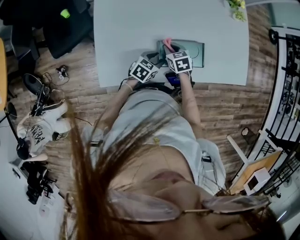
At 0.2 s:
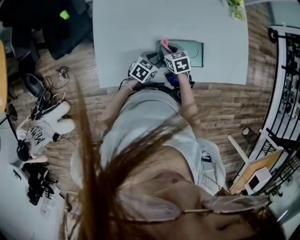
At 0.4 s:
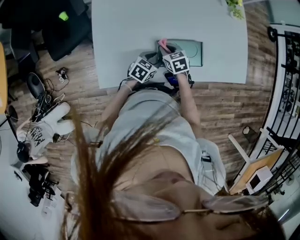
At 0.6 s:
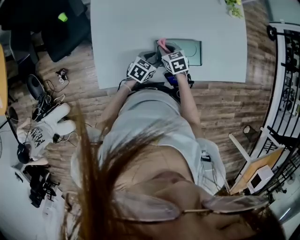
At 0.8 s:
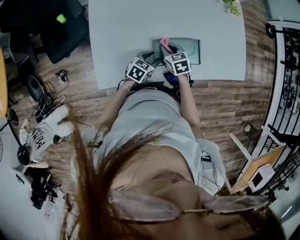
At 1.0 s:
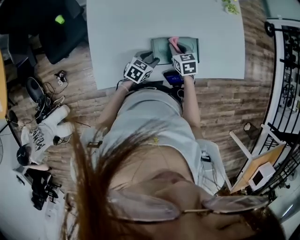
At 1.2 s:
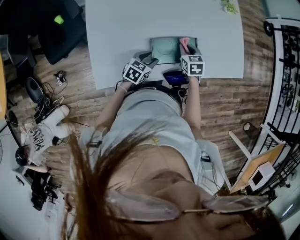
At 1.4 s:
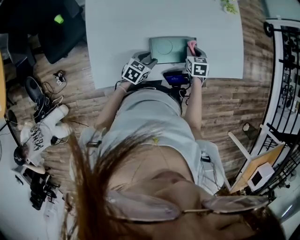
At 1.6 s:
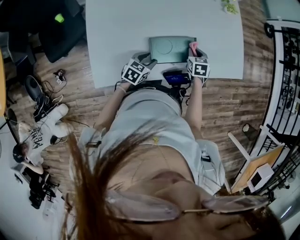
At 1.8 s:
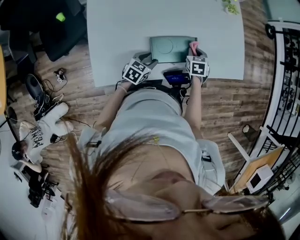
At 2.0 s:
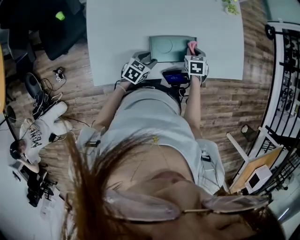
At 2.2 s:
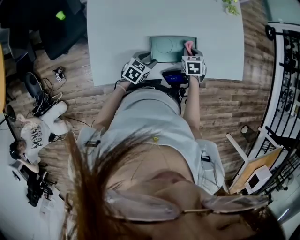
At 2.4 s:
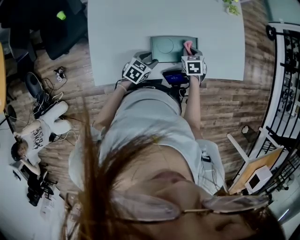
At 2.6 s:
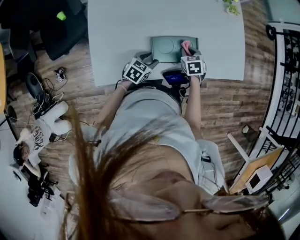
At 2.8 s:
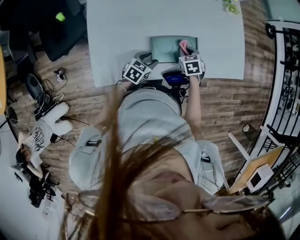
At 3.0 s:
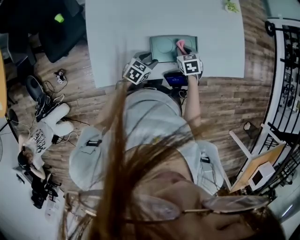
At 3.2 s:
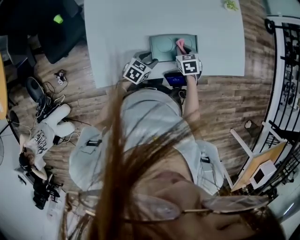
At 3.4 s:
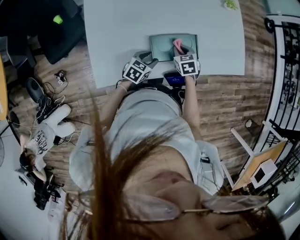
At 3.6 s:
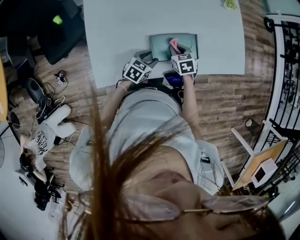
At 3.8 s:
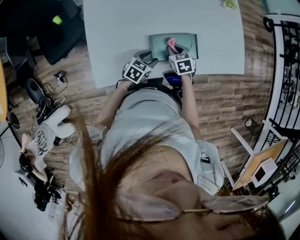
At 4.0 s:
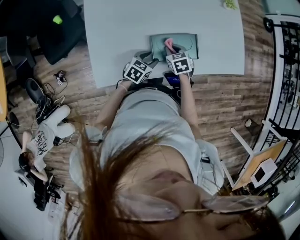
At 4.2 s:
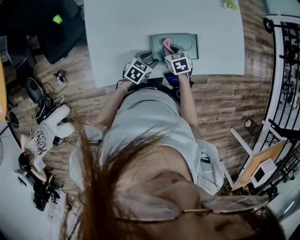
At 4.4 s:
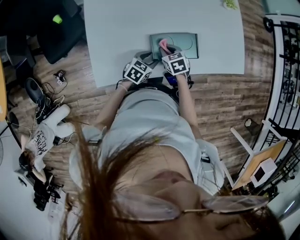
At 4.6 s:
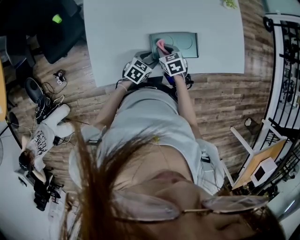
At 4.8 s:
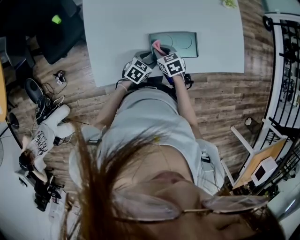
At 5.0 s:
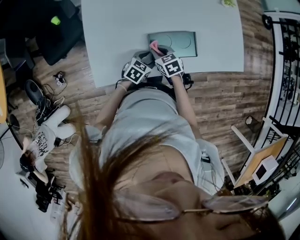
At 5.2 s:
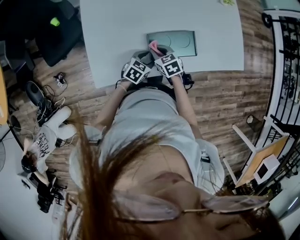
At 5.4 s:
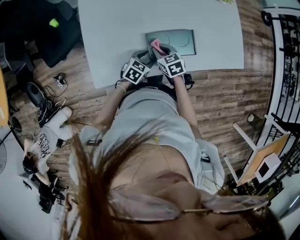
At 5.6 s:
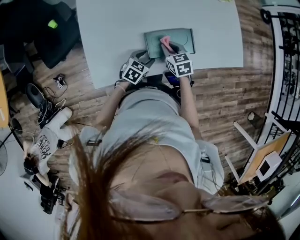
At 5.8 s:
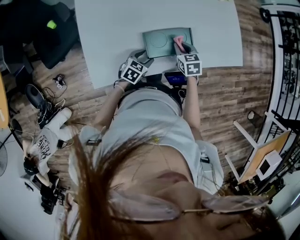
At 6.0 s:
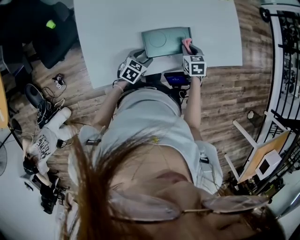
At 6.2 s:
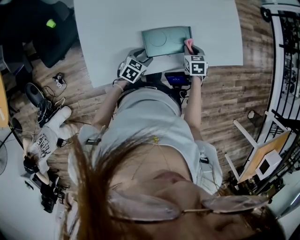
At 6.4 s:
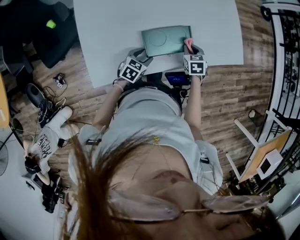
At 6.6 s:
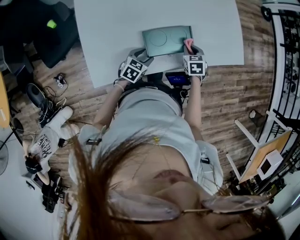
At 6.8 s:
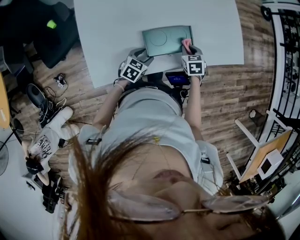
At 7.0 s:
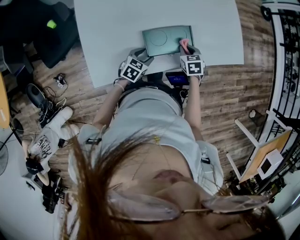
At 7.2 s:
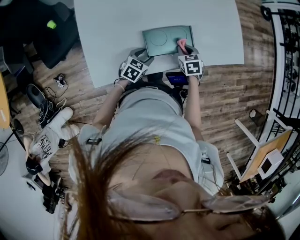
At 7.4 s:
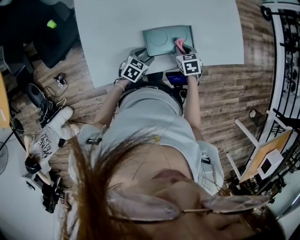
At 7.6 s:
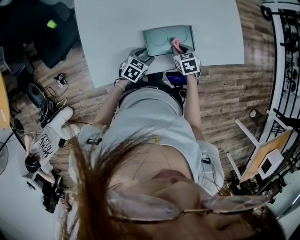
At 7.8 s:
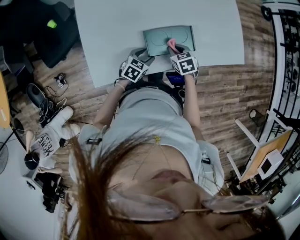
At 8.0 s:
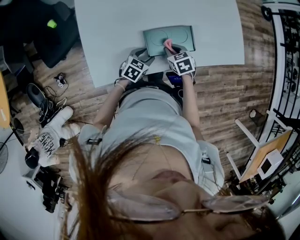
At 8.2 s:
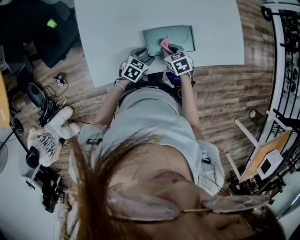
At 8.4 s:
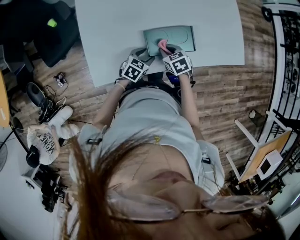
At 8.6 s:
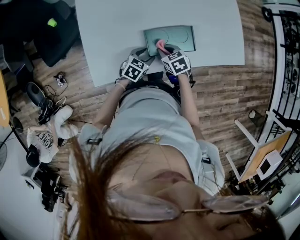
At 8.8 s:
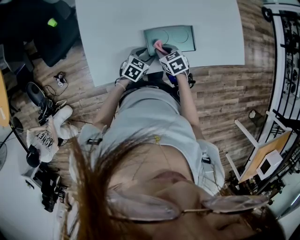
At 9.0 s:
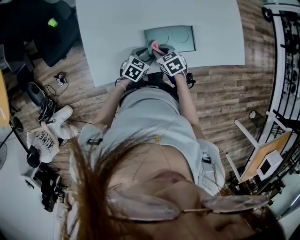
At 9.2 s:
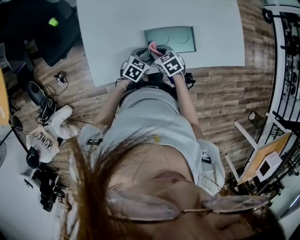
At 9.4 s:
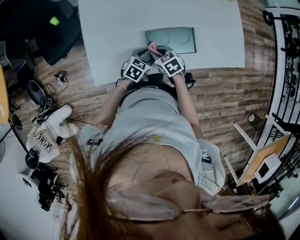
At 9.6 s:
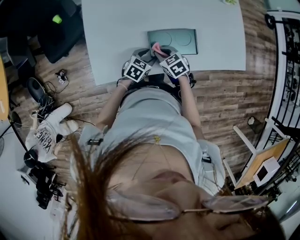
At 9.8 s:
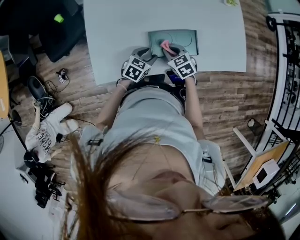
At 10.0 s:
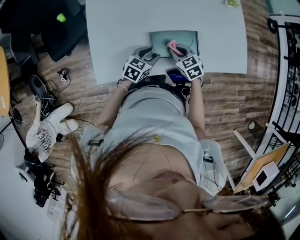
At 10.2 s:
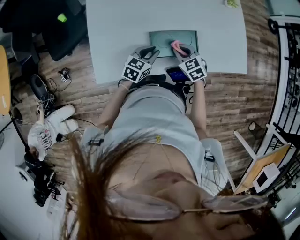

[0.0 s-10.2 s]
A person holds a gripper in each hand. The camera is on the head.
0.0 to 1.4 s: The right gripper moves to the right, roughly 15 cm, and changes its angle by roughly 20 degrees.
1.4 to 3.0 s: The right gripper moves approximately 5 cm.
3.0 to 4.4 s: The right gripper travels to the left by about 10 cm.
4.4 to 5.8 s: The right gripper shifts some 10 cm to the right.
7.2 to 8.8 s: The right gripper travels to the left by some 10 cm.
8.8 to 10.2 s: The left gripper moves upward, roughly 5 cm, and closes its fingers. Meanwhile the right gripper goes some 5 cm to the right.

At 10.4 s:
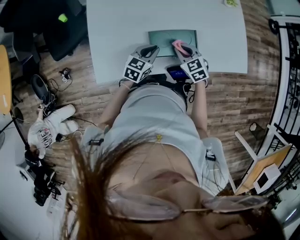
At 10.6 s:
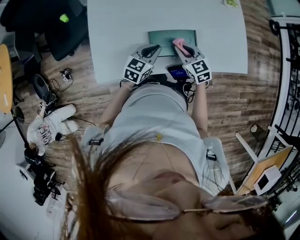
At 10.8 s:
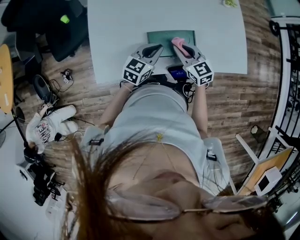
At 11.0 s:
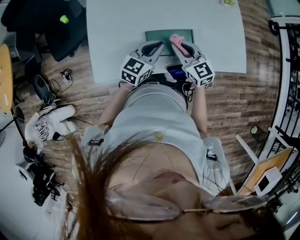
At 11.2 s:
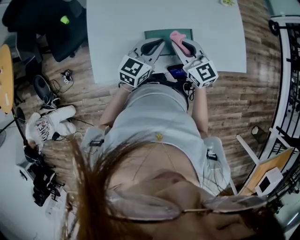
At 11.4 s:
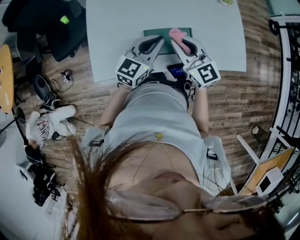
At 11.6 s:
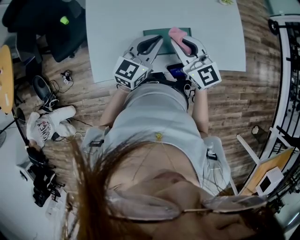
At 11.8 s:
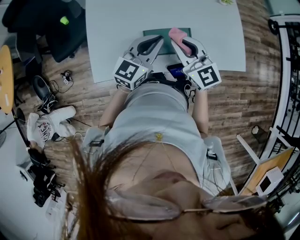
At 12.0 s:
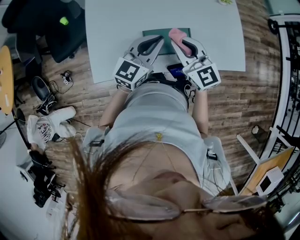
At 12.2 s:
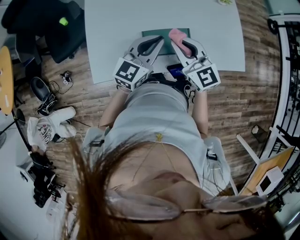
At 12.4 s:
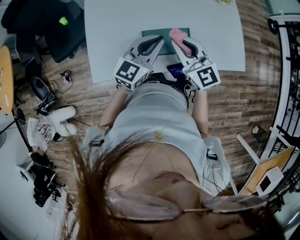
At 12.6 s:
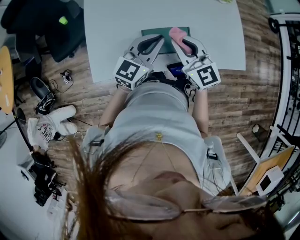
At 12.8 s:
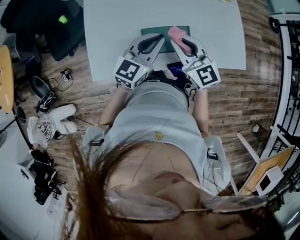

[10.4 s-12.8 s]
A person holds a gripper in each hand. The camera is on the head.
10.4 to 11.6 s: The two grippers go roughly 20 cm upward. The left gripper swivels approximately 20 degrees. Meanwhile the right gripper tips its fingers upward by some 40 degrees.
11.6 to 12.8 s: There are only small adjustments of the grippers.

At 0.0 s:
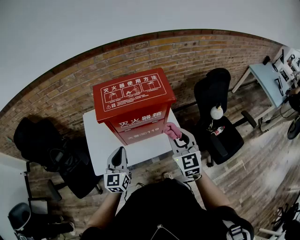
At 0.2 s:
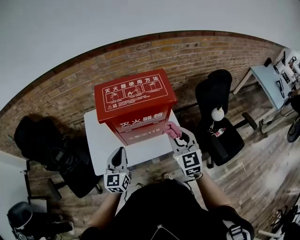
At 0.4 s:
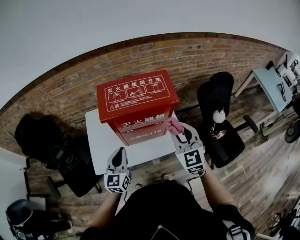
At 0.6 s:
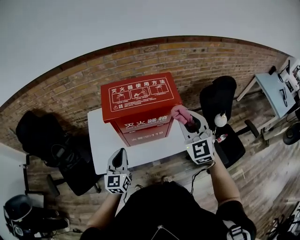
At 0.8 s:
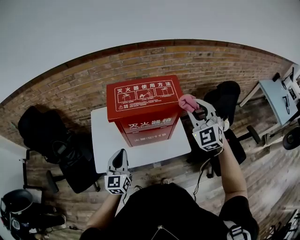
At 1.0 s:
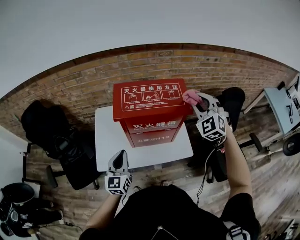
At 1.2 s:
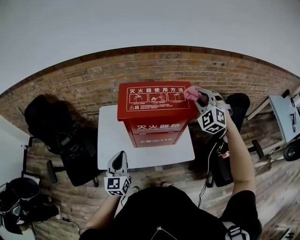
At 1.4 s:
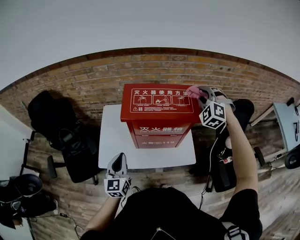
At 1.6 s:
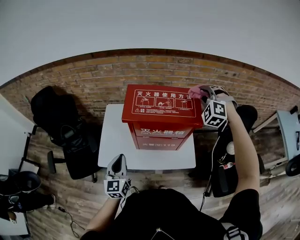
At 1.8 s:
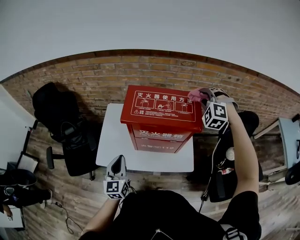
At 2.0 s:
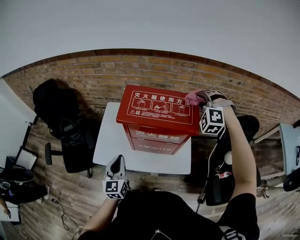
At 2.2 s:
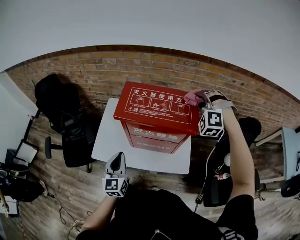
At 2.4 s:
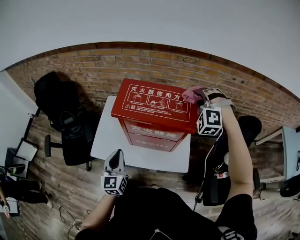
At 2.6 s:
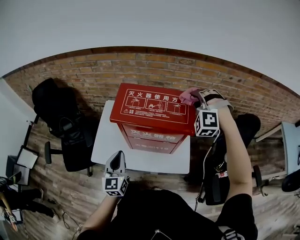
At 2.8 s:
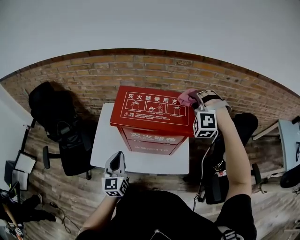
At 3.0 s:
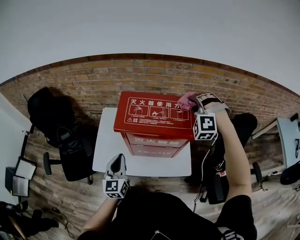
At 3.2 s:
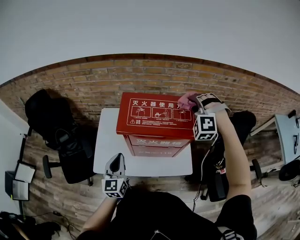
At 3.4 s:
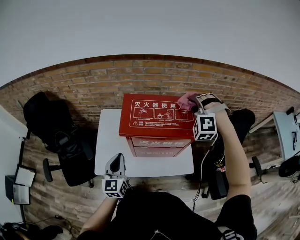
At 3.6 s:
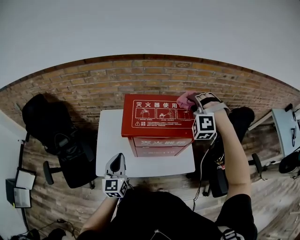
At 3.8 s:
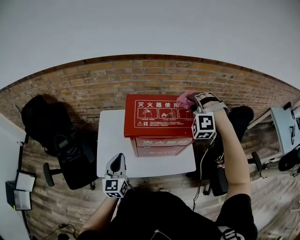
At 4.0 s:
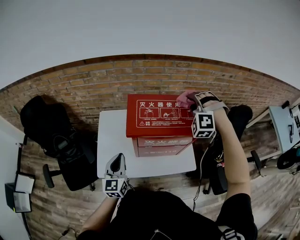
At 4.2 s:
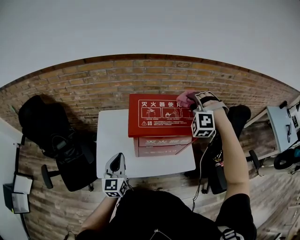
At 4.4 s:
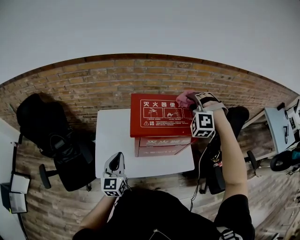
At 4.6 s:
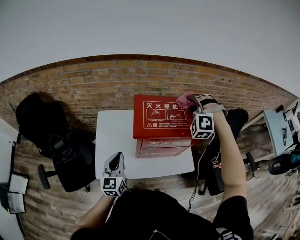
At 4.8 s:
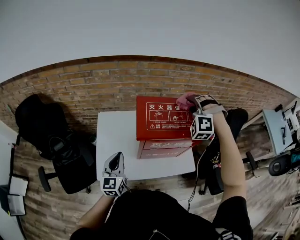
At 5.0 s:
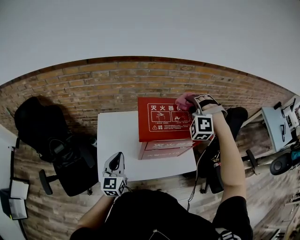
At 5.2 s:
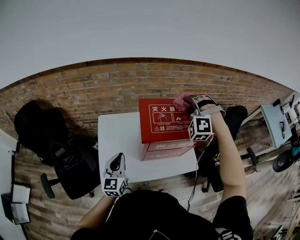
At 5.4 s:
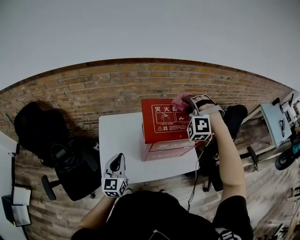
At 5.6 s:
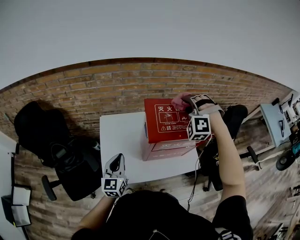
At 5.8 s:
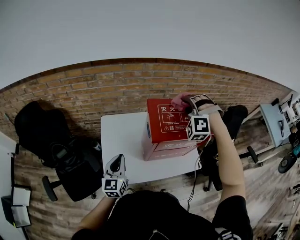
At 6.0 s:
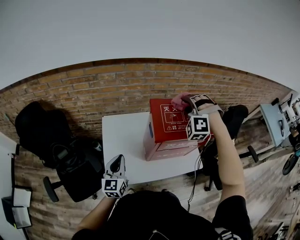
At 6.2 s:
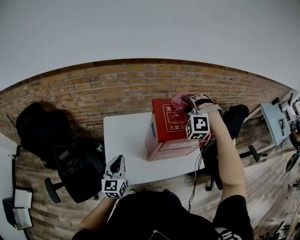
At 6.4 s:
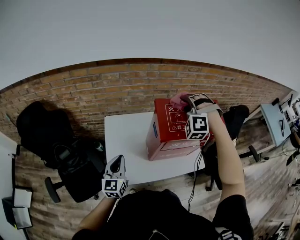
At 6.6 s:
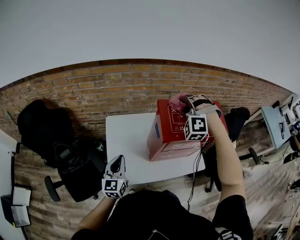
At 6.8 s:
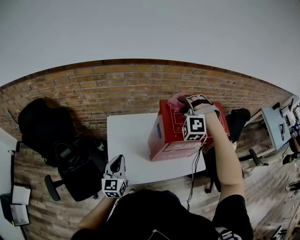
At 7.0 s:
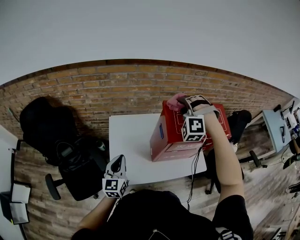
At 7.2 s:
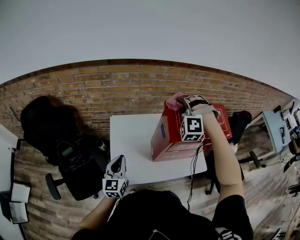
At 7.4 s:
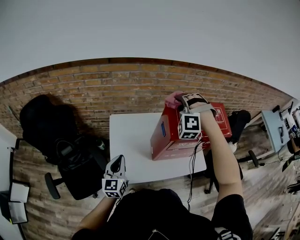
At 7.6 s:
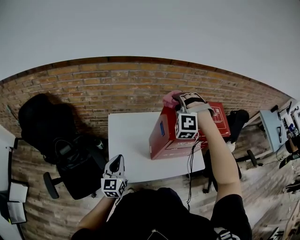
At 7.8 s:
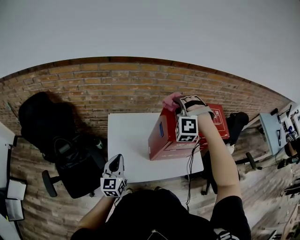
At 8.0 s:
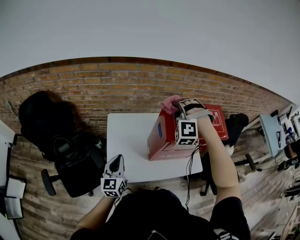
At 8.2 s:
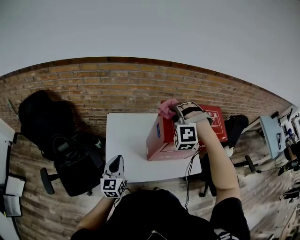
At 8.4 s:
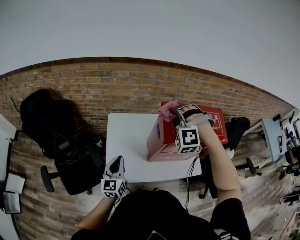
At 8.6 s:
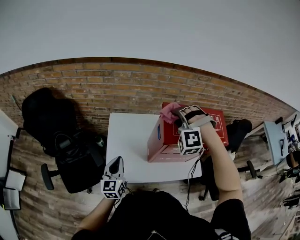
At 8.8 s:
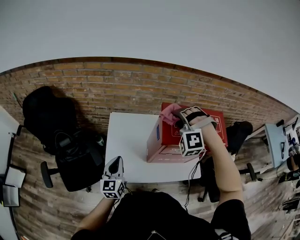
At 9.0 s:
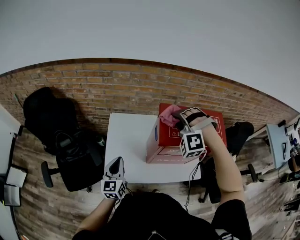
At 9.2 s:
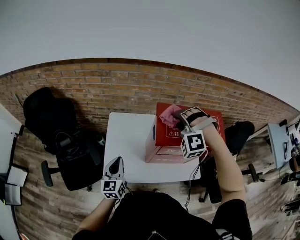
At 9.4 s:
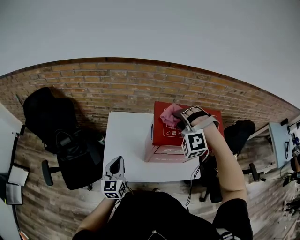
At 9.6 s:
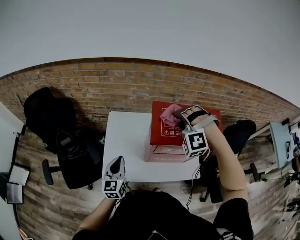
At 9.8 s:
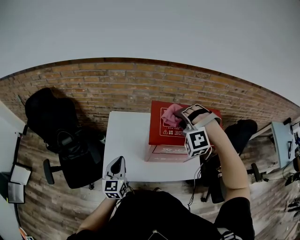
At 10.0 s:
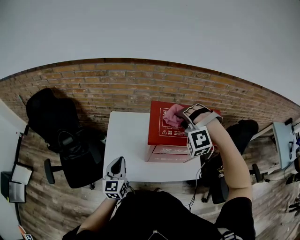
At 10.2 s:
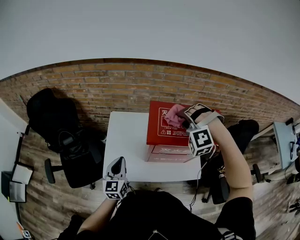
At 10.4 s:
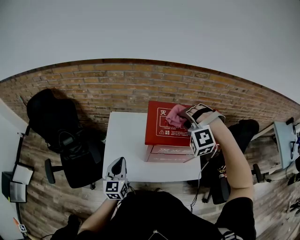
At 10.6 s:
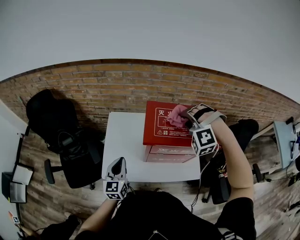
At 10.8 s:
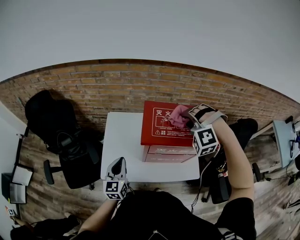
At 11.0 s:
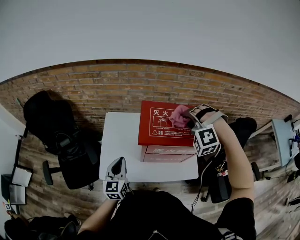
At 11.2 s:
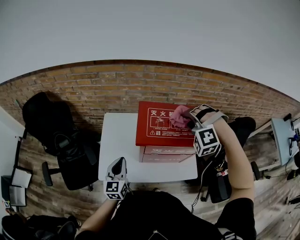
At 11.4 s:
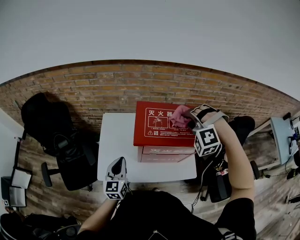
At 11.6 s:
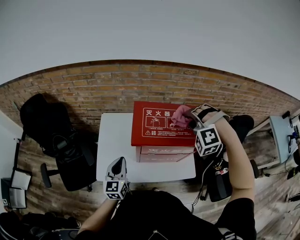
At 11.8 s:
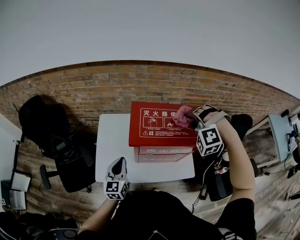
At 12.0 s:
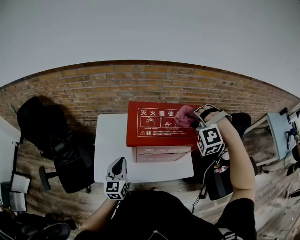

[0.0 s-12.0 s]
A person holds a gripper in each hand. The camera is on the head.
0.0 to 1.6 s: The left gripper changes place by approximately 5 cm, and turns by approximately 20 degrees.
1.6 to 3.0 s: The left gripper moves approximately 5 cm.
3.0 to 4.4 s: The left gripper ends up roughly 10 cm from where it was.
4.4 to 6.0 s: The left gripper shifts by about 10 cm.
6.0 to 7.6 s: The left gripper changes place by about 5 cm.
9.0 to 10.4 s: The left gripper moves roughly 5 cm.
10.4 to 12.0 s: The left gripper changes place by some 5 cm.
